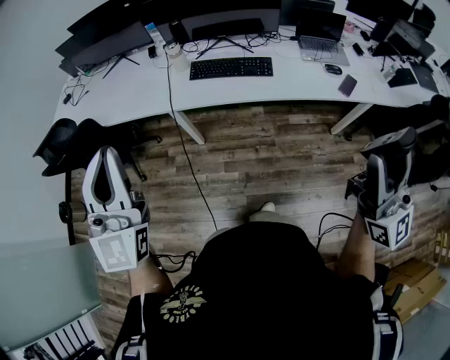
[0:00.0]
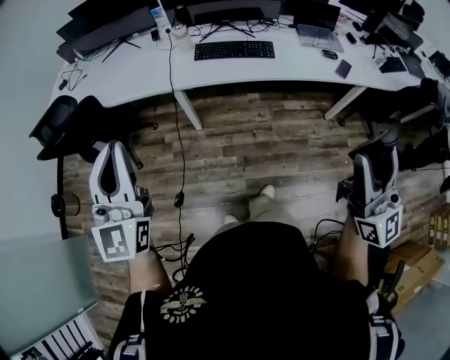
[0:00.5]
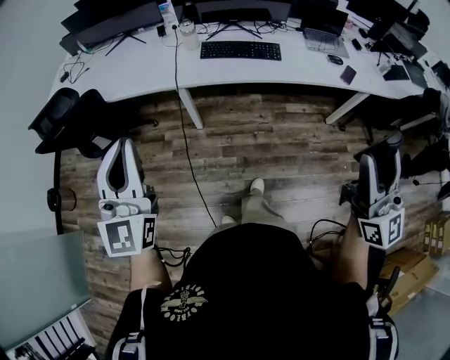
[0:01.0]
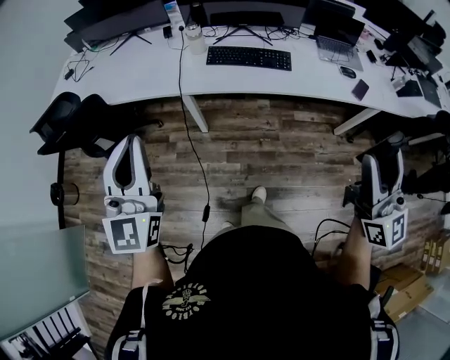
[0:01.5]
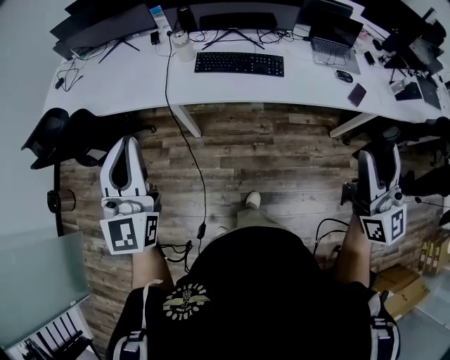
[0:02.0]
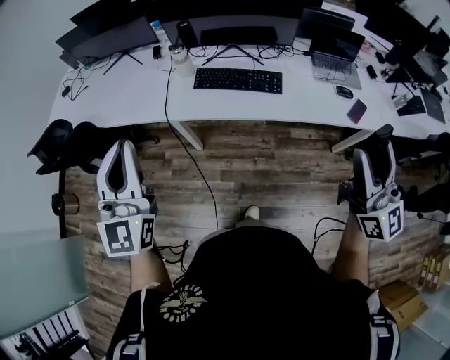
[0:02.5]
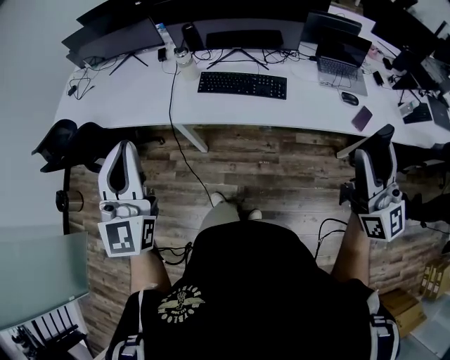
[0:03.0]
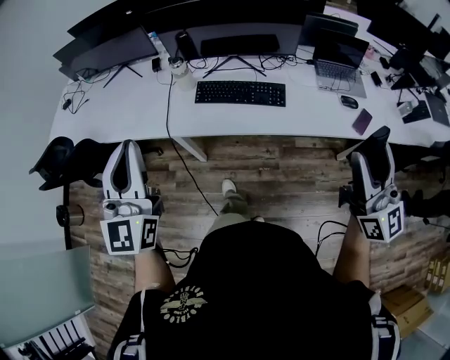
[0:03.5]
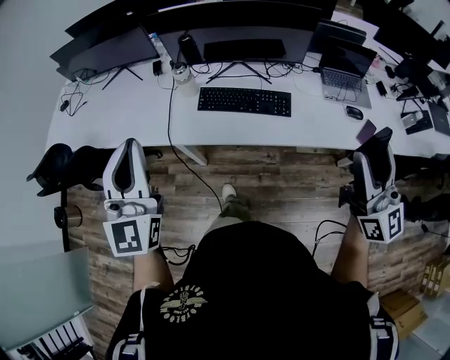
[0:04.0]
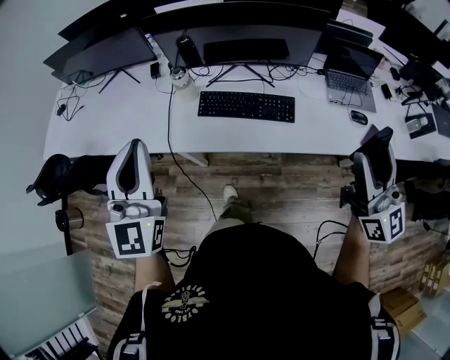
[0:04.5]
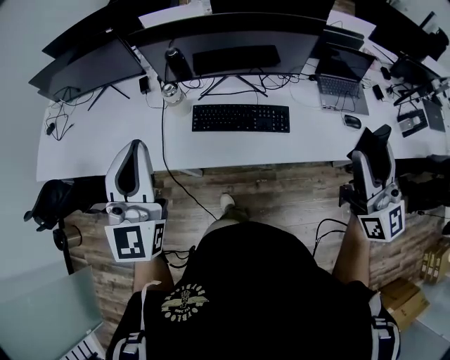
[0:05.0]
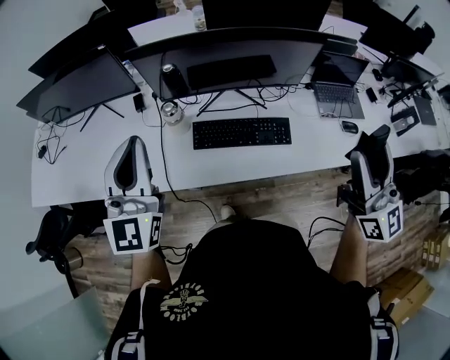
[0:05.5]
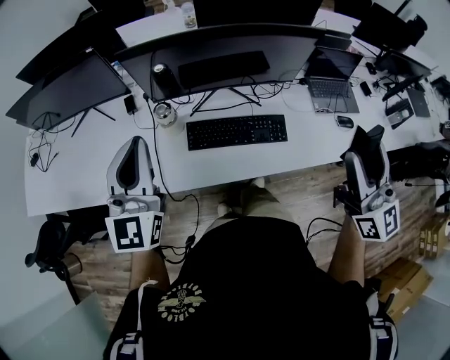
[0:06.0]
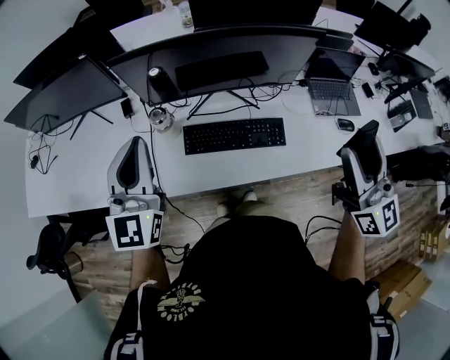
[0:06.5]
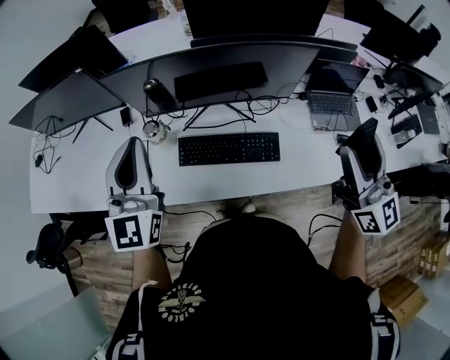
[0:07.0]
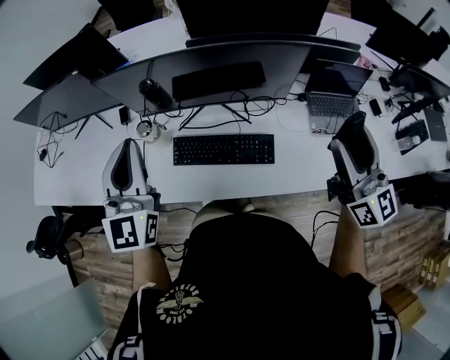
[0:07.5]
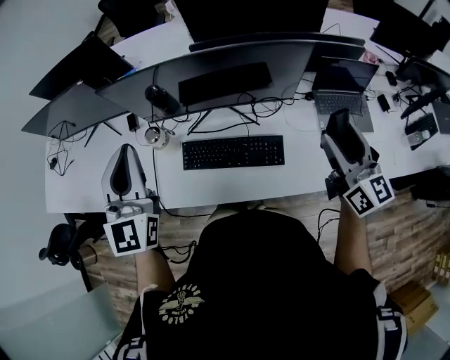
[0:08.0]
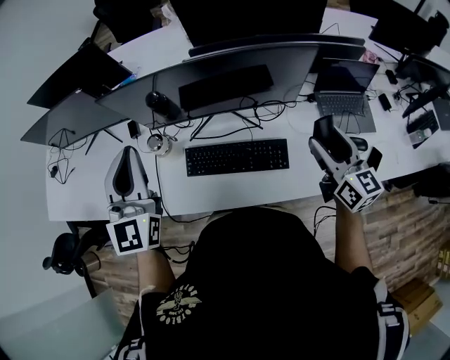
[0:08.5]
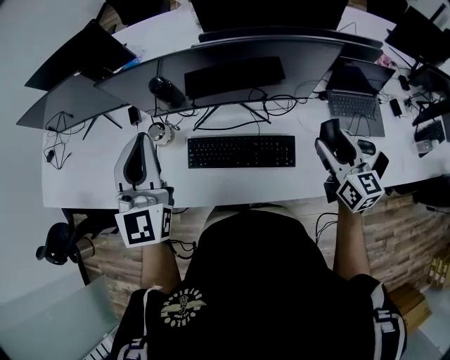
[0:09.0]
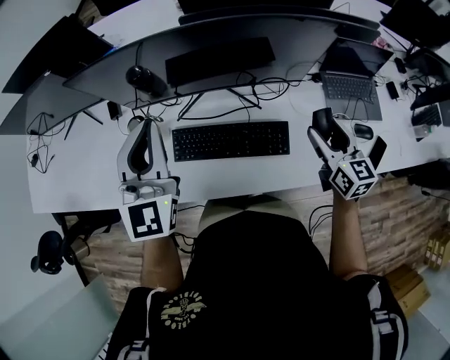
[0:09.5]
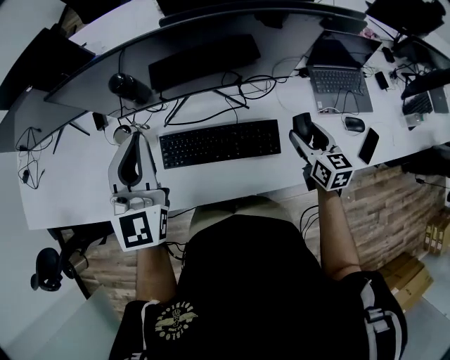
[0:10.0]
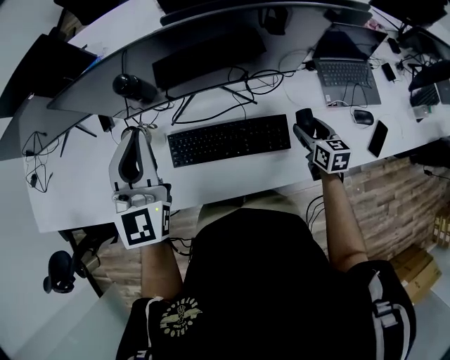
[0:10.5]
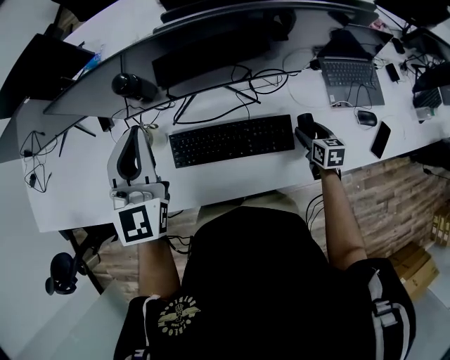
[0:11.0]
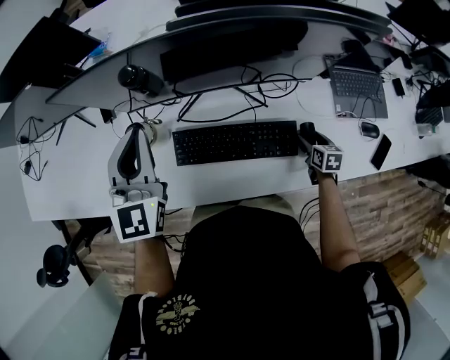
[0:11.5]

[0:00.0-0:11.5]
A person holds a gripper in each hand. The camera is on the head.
0:00.0 to 0:02.0: The right gripper travels forward and downward by roughly 10 cm; the left gripper goes roughly 10 cm downward and forward.
0:02.0 to 0:04.0: Both grippers travel together forward, about 15 cm.
0:04.0 to 0:06.0: The left gripper goes about 25 cm forward. Meanwhile the right gripper heads forward and to the left, covering approximately 15 cm.
0:06.0 to 0:07.5: The right gripper goes about 15 cm to the right and forward, while the left gripper heads to the right, covering roughly 10 cm.
0:07.5 to 0:09.5: The left gripper shifts roughly 10 cm downward and forward; the right gripper travels downward by approximately 25 cm, and tilts its fingers approximately 30 degrees downward.
0:09.5 to 0:11.5: The right gripper goes roughly 25 cm downward, and tips its fingers downward by approximately 30 degrees. The left gripper shifts approximately 10 cm downward, to the left and forward.

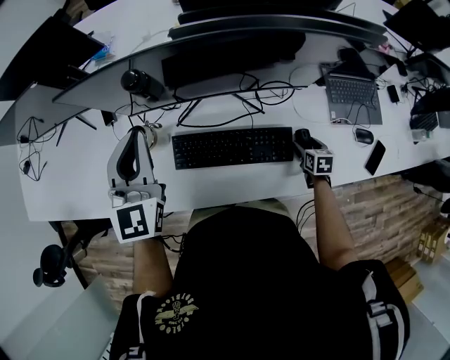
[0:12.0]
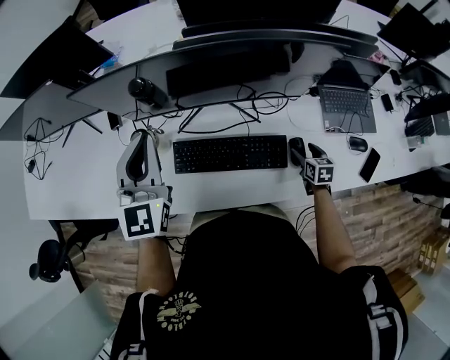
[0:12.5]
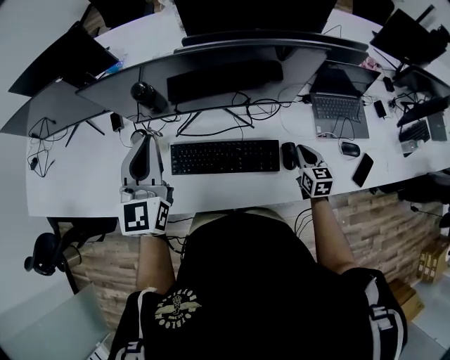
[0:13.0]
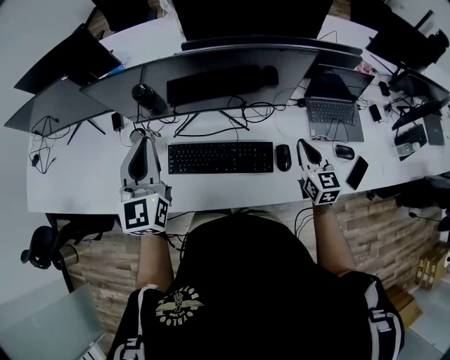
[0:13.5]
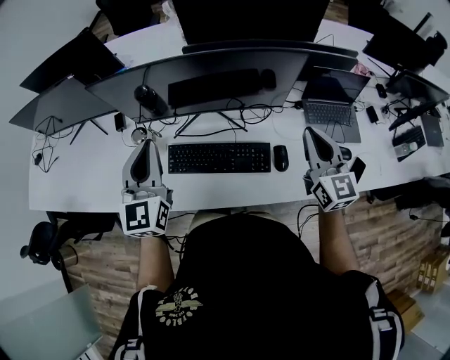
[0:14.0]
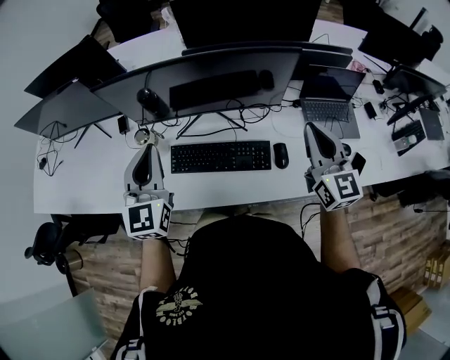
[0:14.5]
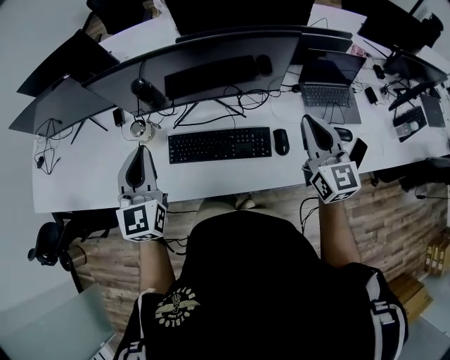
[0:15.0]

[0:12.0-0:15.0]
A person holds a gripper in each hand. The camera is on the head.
0:12.0 to 0:13.5: The right gripper heads upward, covering some 25 cm, points its fingers roughly 40 degrees further upward, and closes. Meanwhile the left gripper moves backward, approximately 5 cm.
0:13.5 to 0:15.0: The left gripper travels backward by approximately 5 cm. The right gripper heads upward, covering some 15 cm.

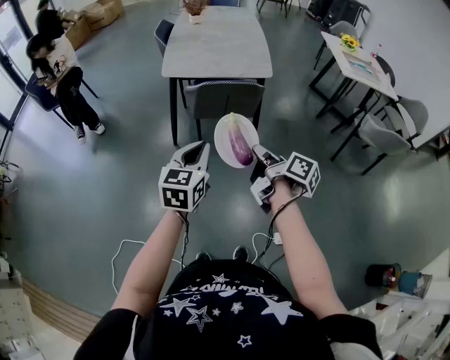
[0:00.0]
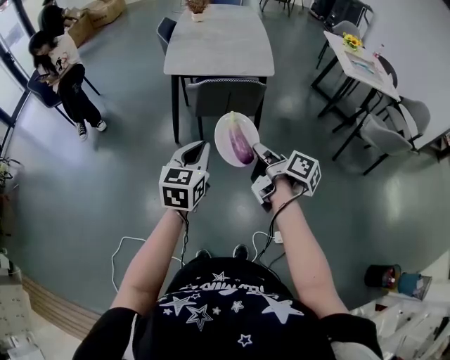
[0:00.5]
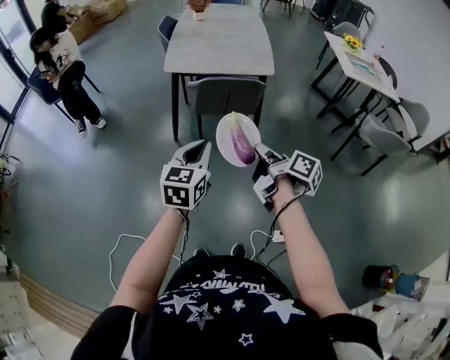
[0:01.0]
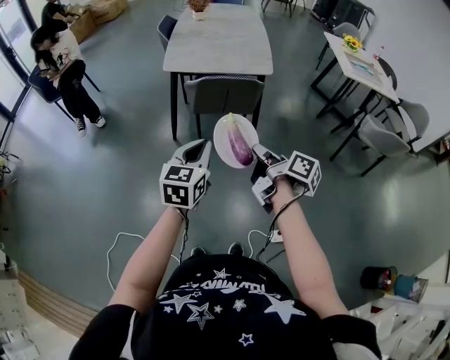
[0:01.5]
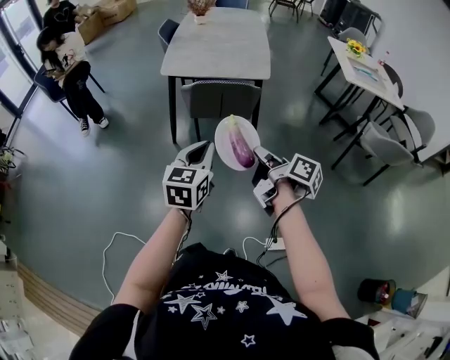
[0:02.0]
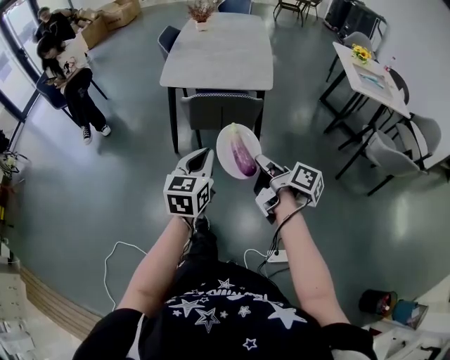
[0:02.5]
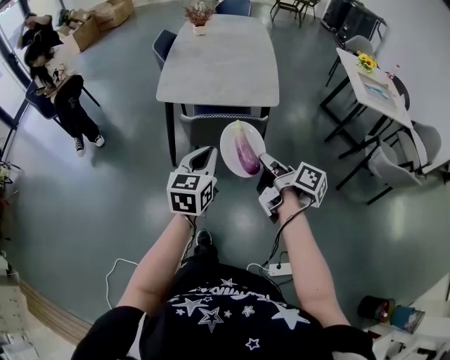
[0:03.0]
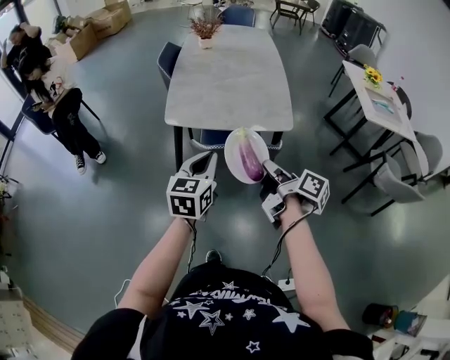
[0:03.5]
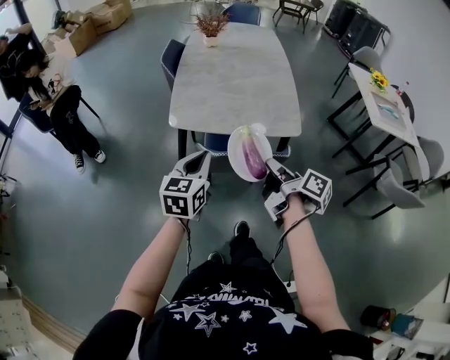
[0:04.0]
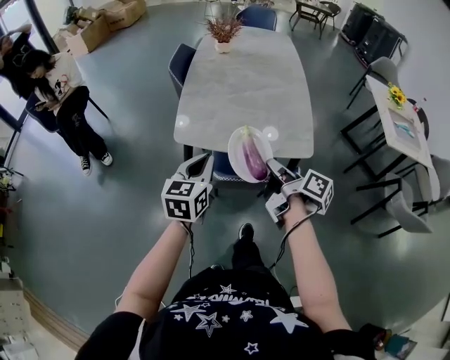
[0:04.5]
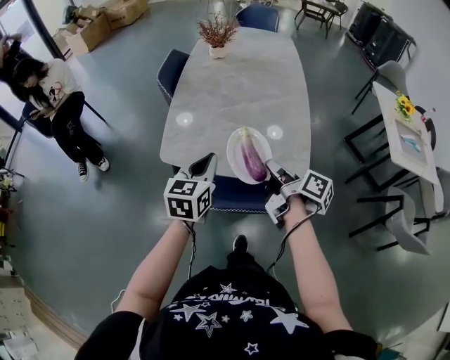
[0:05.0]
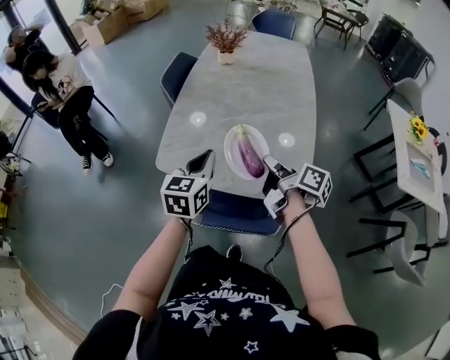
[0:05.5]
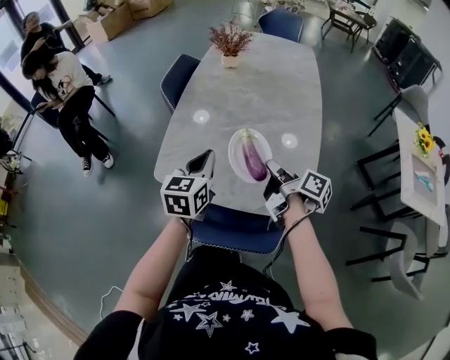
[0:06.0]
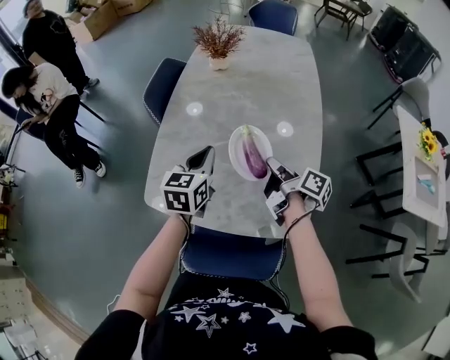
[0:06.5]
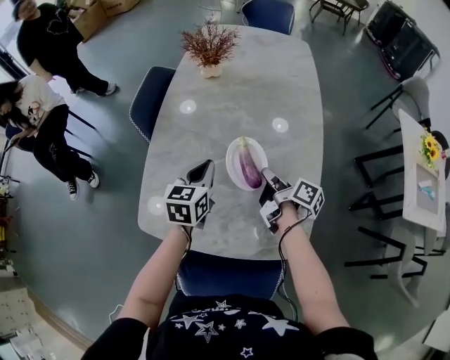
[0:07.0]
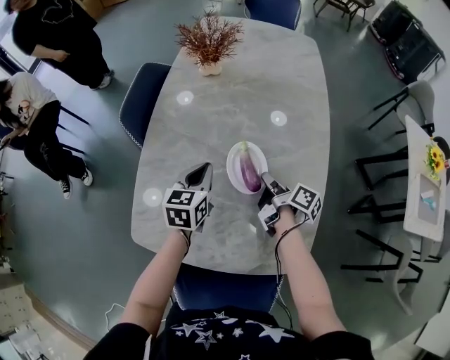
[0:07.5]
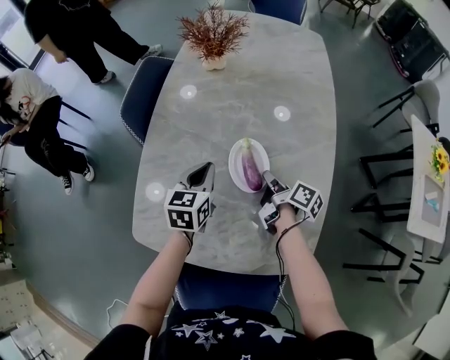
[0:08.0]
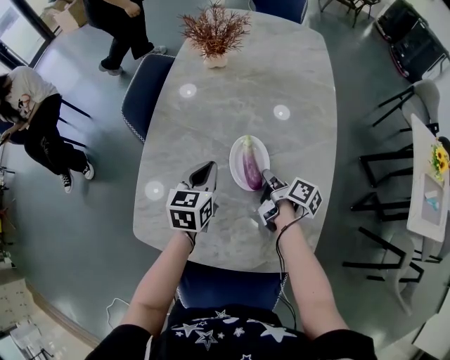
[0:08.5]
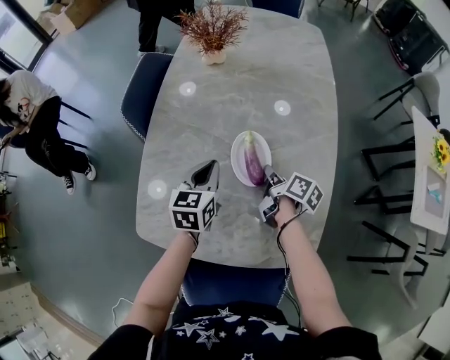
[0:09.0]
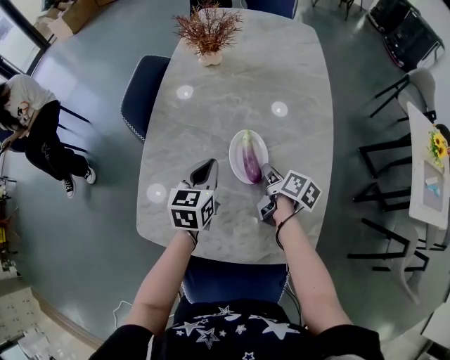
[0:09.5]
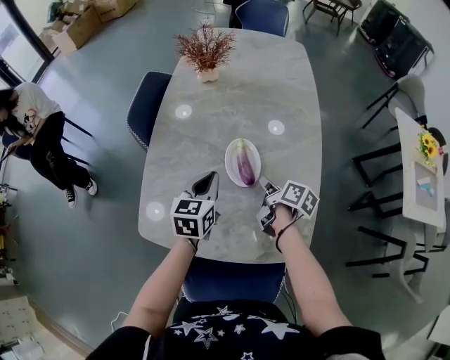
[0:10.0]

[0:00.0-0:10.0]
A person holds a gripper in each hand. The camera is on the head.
0:00.0 to 0:02.0: The left gripper moves roughly 10 cm.
0:02.0 to 0:04.0: The left gripper shifts by some 40 cm.
0:04.0 to 0:06.0: The left gripper moves roughly 30 cm.
0:06.0 to 0:08.0: The left gripper shifts by roughly 25 cm.
0:08.0 to 0:10.0: The left gripper changes place by approximately 10 cm.

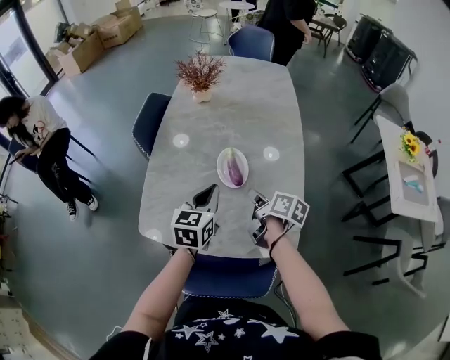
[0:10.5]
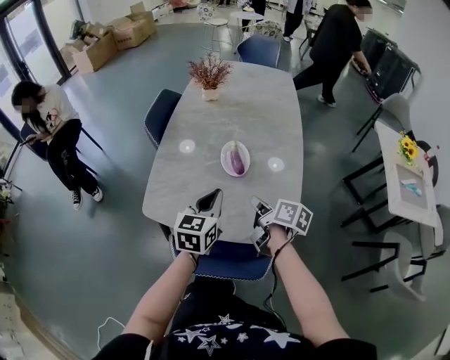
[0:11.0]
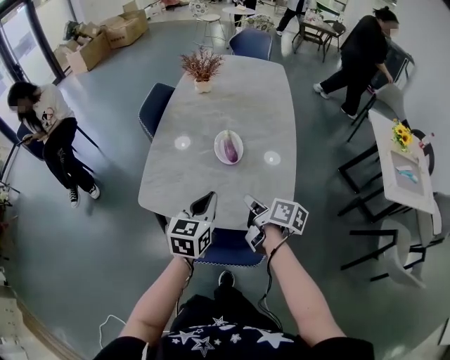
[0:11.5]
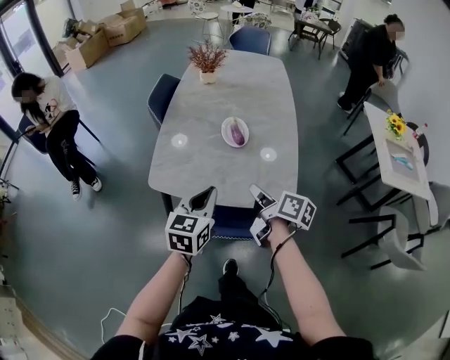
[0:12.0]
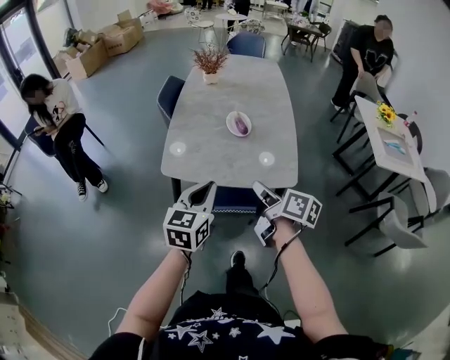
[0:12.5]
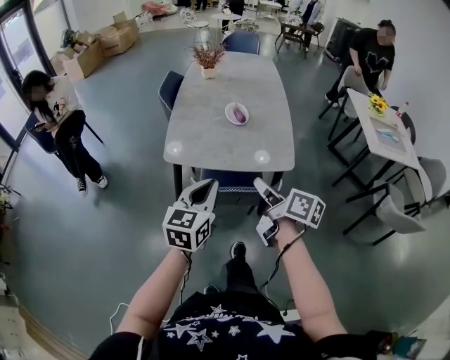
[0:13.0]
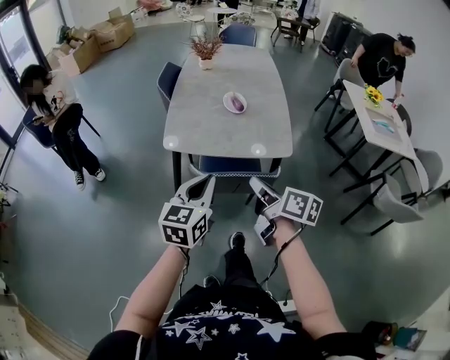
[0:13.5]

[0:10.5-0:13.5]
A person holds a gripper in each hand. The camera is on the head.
0:10.5 to 0:12.0: The left gripper ends up about 20 cm from where it was.
0:12.0 to 0:13.5: The left gripper moves about 25 cm.
